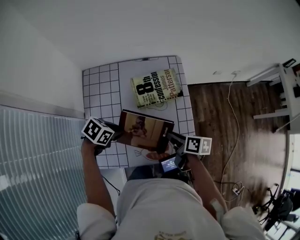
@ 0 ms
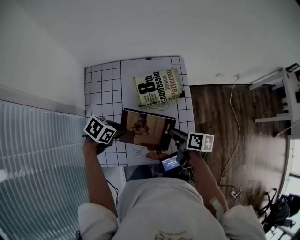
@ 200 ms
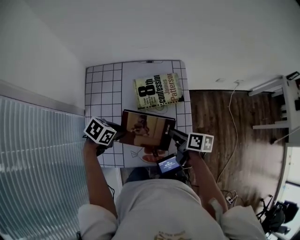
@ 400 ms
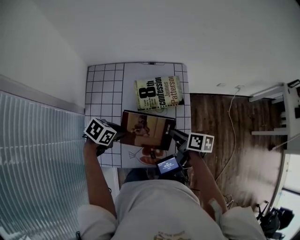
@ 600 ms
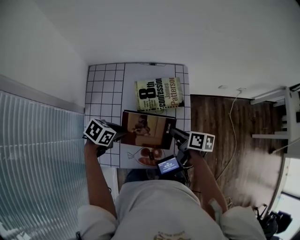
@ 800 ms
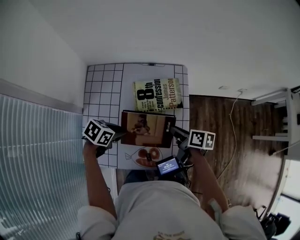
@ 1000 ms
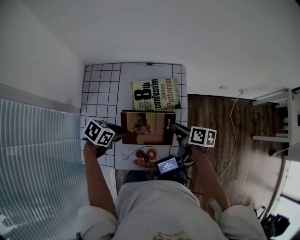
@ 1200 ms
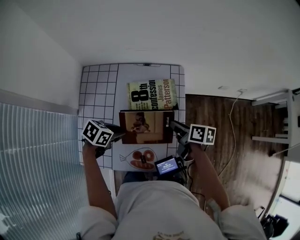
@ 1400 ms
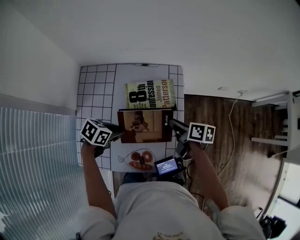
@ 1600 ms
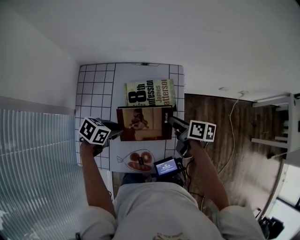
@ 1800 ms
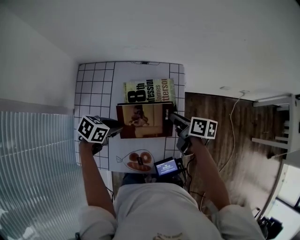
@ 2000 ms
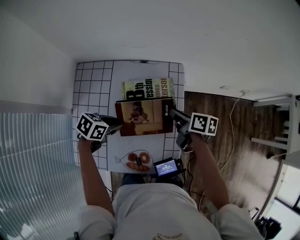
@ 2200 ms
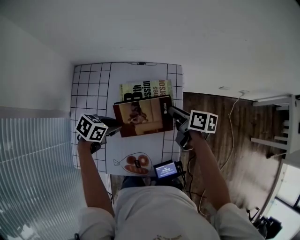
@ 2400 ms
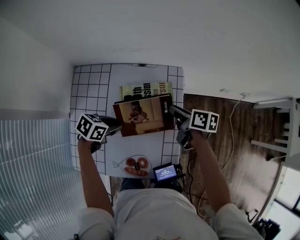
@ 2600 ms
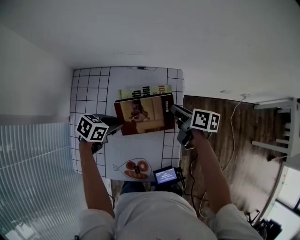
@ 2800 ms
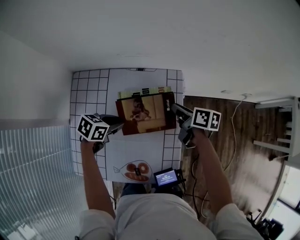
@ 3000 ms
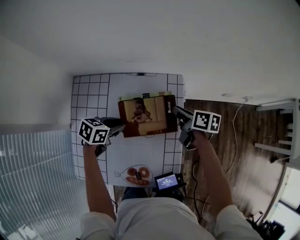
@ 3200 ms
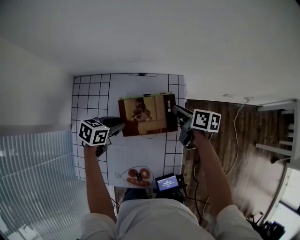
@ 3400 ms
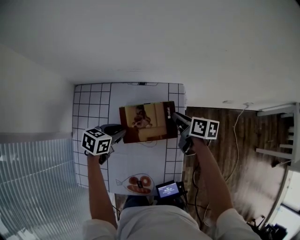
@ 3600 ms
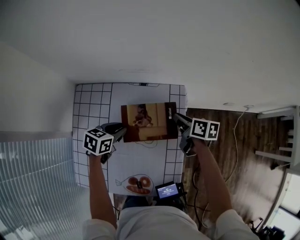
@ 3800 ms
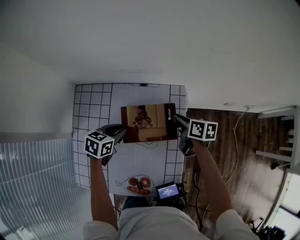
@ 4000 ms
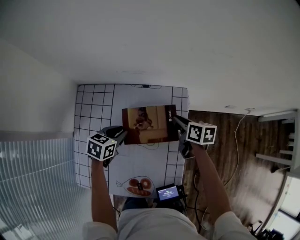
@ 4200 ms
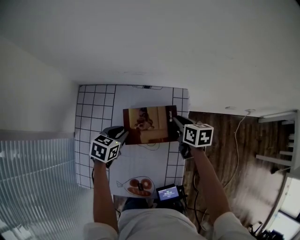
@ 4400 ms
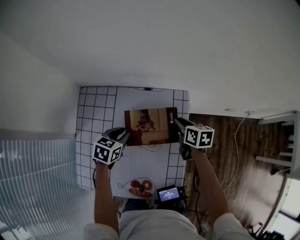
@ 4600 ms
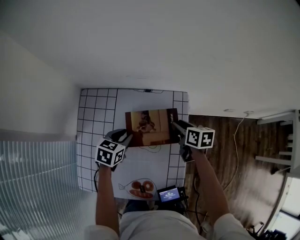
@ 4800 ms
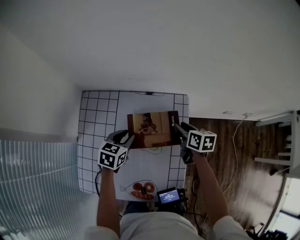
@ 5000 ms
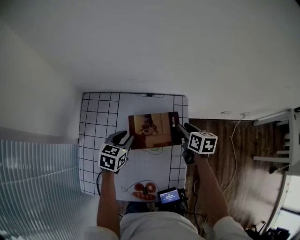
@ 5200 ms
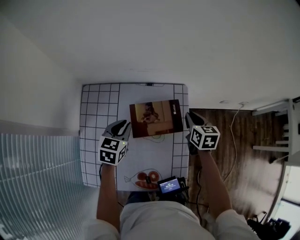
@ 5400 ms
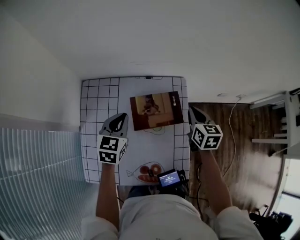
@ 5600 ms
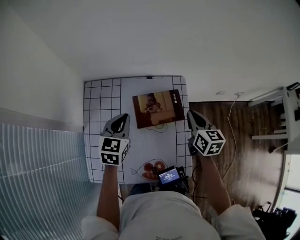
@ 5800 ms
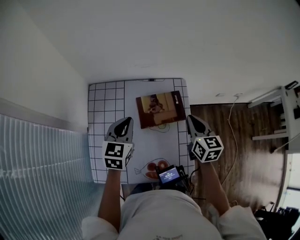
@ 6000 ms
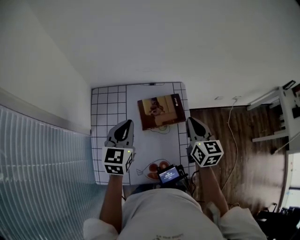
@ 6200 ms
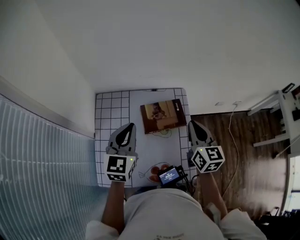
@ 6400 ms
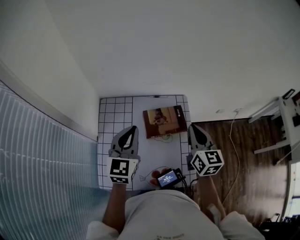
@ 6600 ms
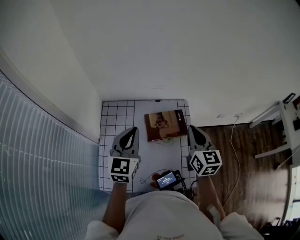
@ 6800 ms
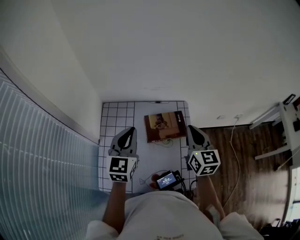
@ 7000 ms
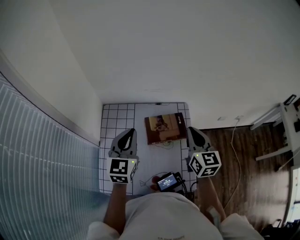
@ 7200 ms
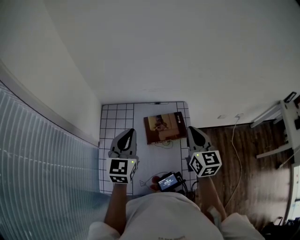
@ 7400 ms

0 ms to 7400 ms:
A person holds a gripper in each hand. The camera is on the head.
0 ms to 1400 ms: The right gripper ends up roughly 15 cm from where it was; the left gripper moves some 5 cm.
1400 ms to 3000 ms: The right gripper moves roughly 15 cm, while the left gripper changes place by about 10 cm.
3000 ms to 4400 ms: The right gripper rotates about 20 degrees.
4400 ms to 6000 ms: The left gripper heads upward, covering approximately 15 cm, turns by approximately 30 degrees, and closes its fingers, while the right gripper goes roughly 20 cm upward and backward, rotates approximately 30 degrees, and opens, then closes again.
6000 ms to 7400 ms: Both grippers travel together upward, roughly 10 cm.

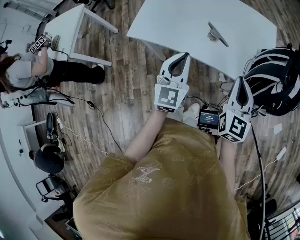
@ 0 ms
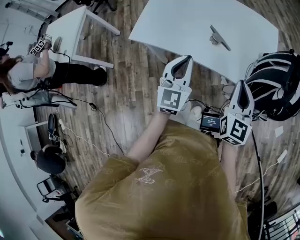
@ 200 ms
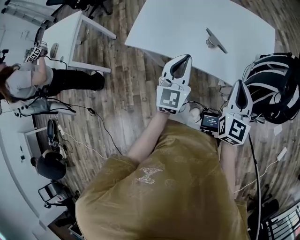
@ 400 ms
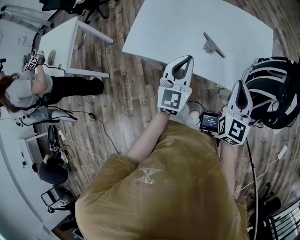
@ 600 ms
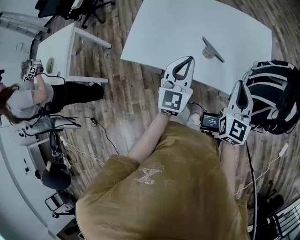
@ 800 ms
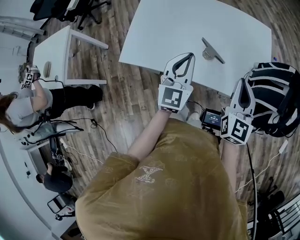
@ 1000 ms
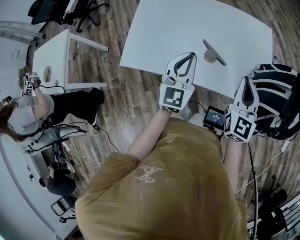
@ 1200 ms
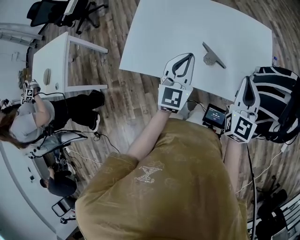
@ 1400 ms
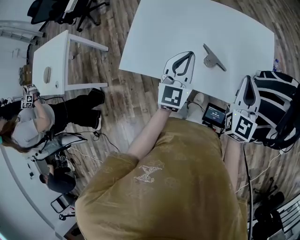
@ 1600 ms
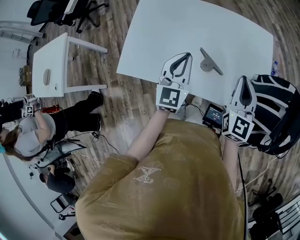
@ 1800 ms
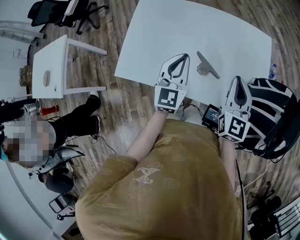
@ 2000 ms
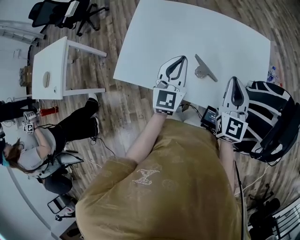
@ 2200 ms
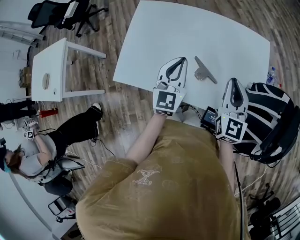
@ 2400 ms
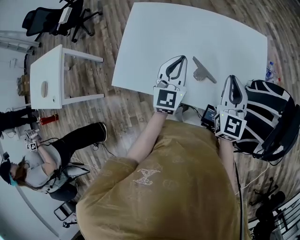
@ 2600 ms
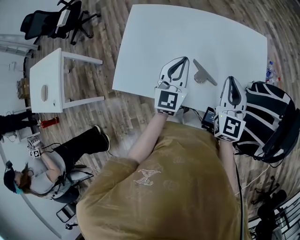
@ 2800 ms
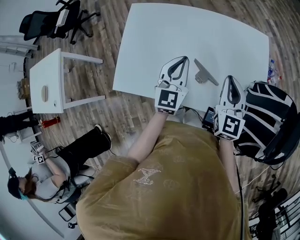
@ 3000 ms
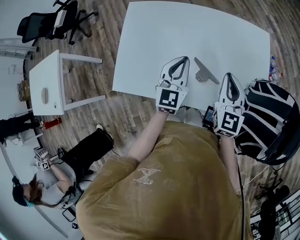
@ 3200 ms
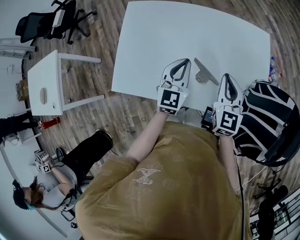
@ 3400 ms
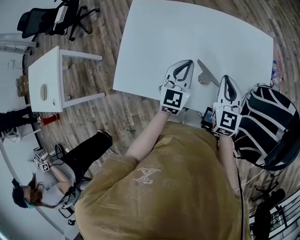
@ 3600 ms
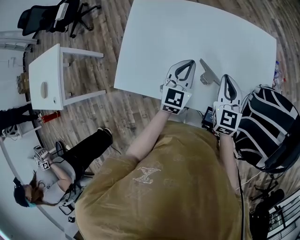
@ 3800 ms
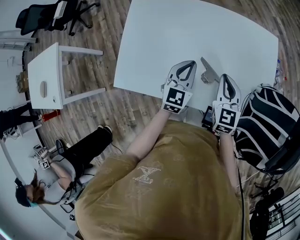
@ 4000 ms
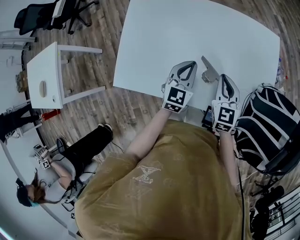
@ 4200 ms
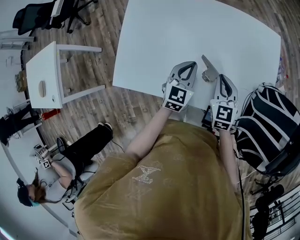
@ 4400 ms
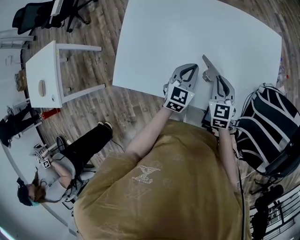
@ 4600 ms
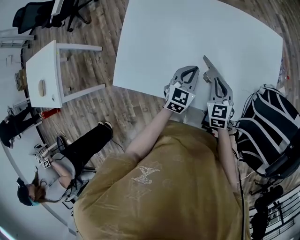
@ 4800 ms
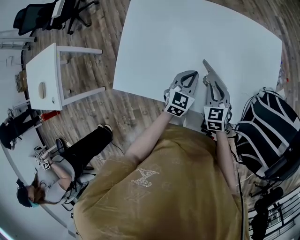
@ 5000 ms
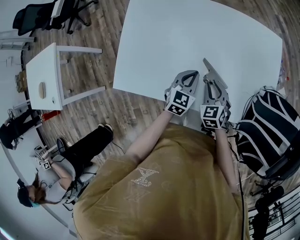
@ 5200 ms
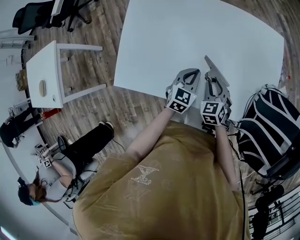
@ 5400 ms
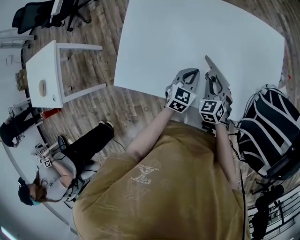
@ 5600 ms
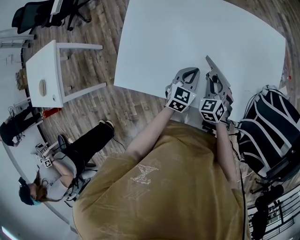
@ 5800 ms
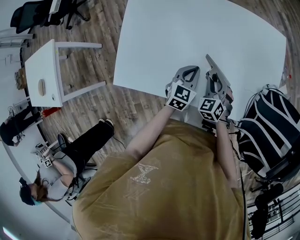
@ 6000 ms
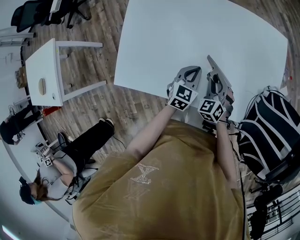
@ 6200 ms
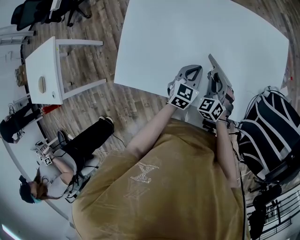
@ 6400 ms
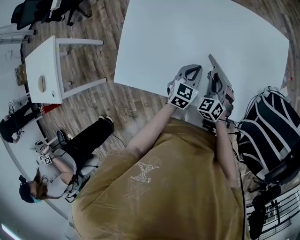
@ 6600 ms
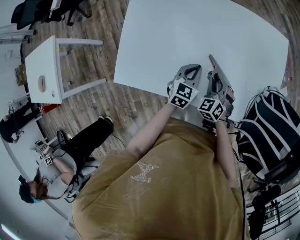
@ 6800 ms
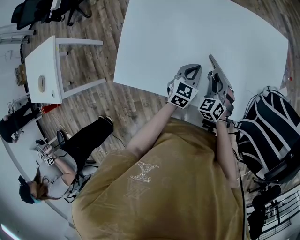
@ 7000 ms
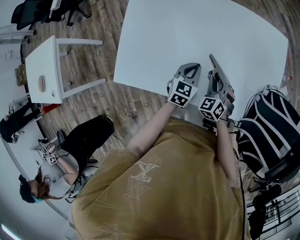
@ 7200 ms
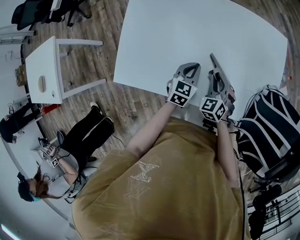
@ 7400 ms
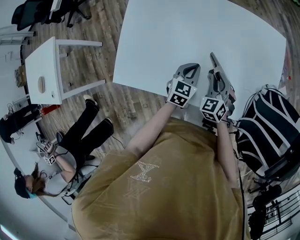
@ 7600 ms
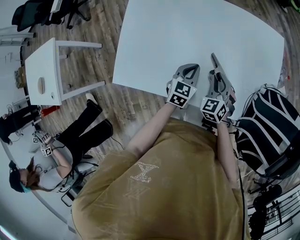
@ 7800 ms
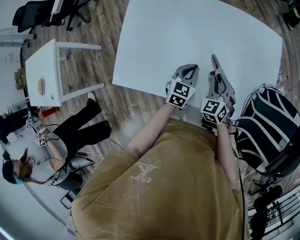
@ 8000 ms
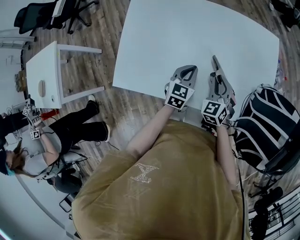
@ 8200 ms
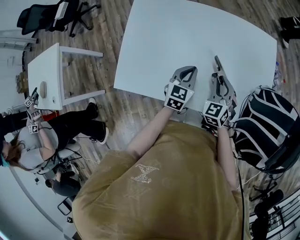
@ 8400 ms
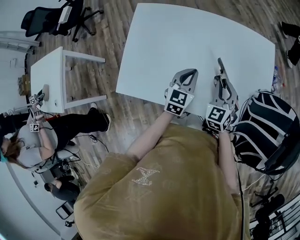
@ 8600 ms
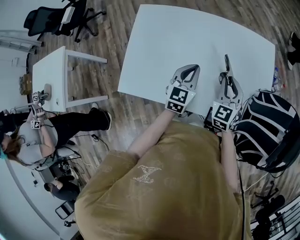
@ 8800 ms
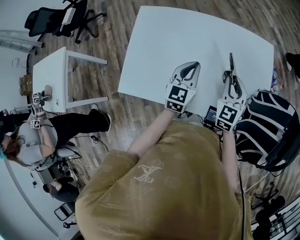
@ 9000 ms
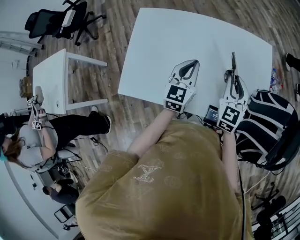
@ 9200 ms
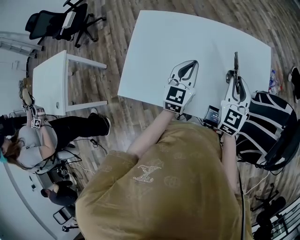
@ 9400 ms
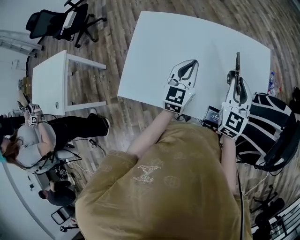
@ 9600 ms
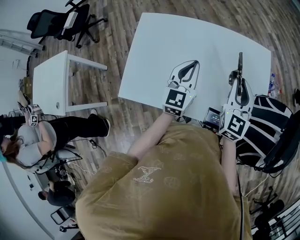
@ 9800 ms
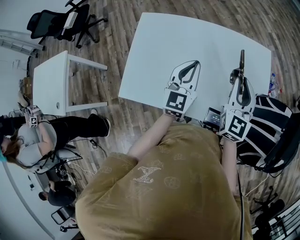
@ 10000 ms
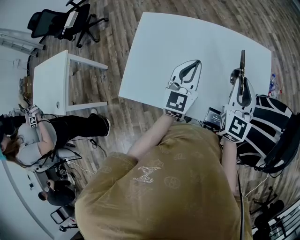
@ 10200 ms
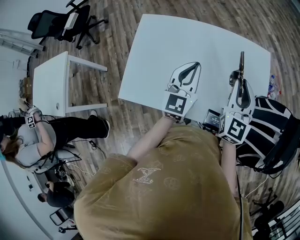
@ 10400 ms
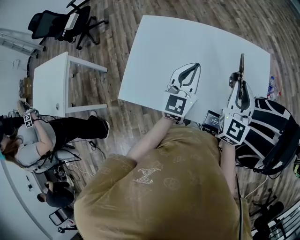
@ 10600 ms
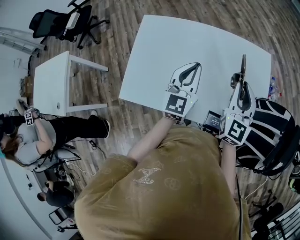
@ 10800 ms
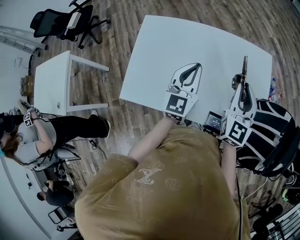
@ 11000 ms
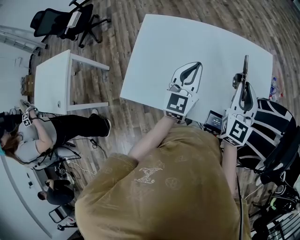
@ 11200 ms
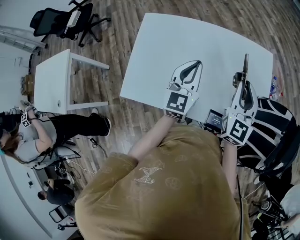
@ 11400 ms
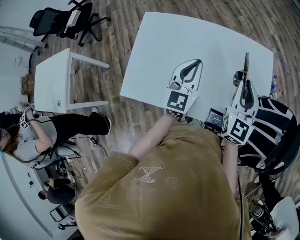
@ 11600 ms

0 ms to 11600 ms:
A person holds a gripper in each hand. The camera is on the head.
0 ms to 1400 ms: Both grippers travel together forward, approximately 15 cm.
1400 ms to 2800 ms: Both grippers move forward, some 10 cm.
2800 ms to 4400 ms: The two grippers go roughly 15 cm downward. The right gripper changes its angle by roughly 20 degrees.
4400 ms to 5800 ms: The left gripper heads downward, covering some 5 cm. The right gripper is displaced downward by approximately 10 cm, rotates about 30 degrees, and opens.
5800 ms to 7200 ms: The grippers move only a little.
7200 ms to 8800 ms: The two grippers go some 15 cm upward. The right gripper rotates about 30 degrees.
8800 ms to 10200 ms: The grippers both shift upward by roughly 10 cm. The right gripper turns by about 20 degrees.
10200 ms to 11600 ms: Both grippers stay about where they are.

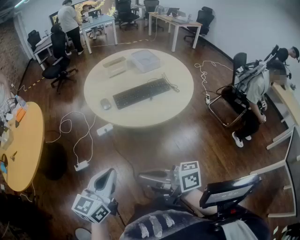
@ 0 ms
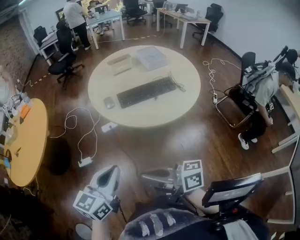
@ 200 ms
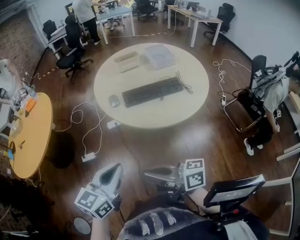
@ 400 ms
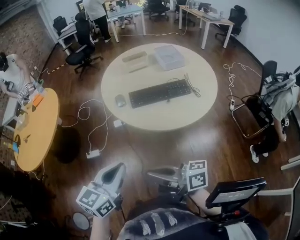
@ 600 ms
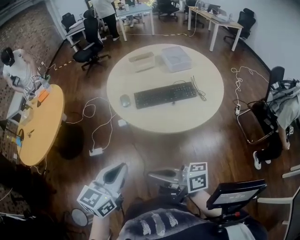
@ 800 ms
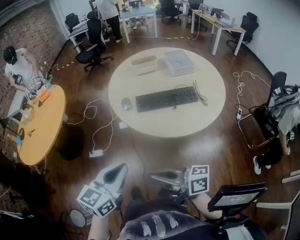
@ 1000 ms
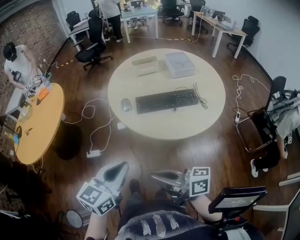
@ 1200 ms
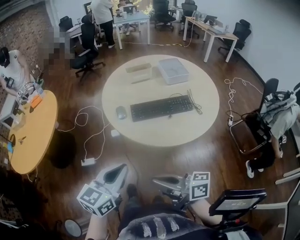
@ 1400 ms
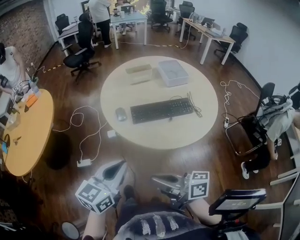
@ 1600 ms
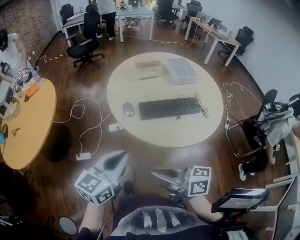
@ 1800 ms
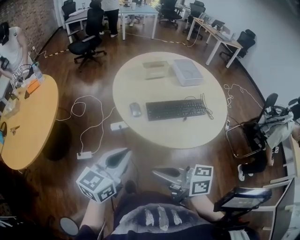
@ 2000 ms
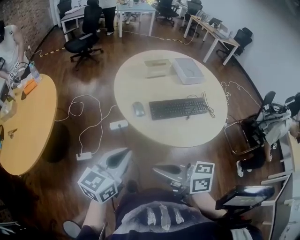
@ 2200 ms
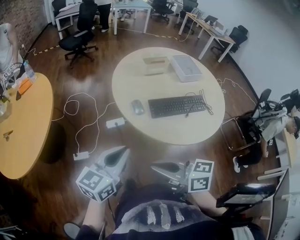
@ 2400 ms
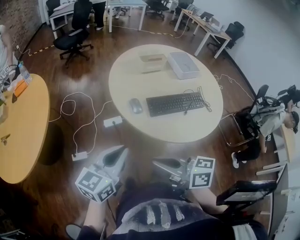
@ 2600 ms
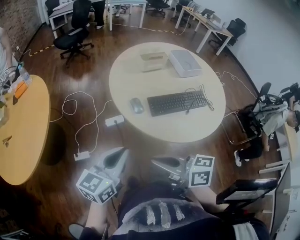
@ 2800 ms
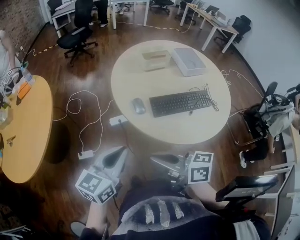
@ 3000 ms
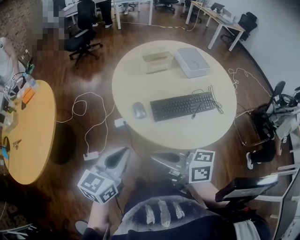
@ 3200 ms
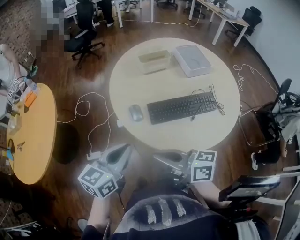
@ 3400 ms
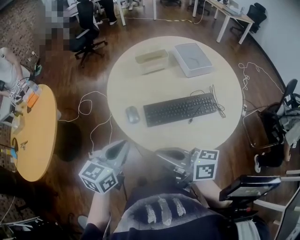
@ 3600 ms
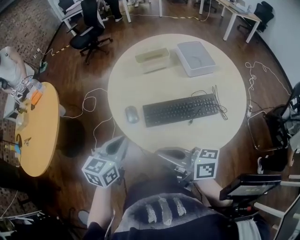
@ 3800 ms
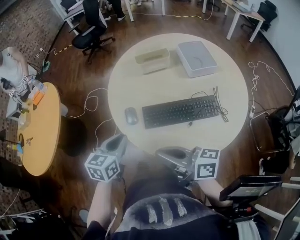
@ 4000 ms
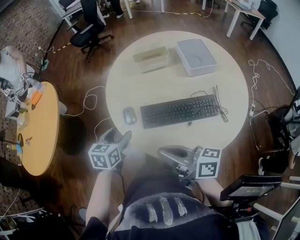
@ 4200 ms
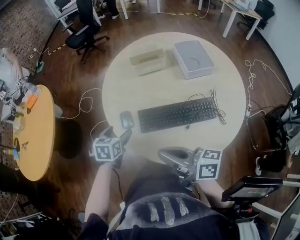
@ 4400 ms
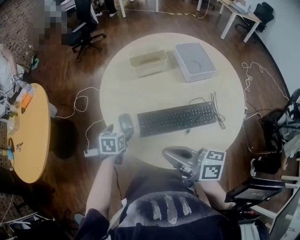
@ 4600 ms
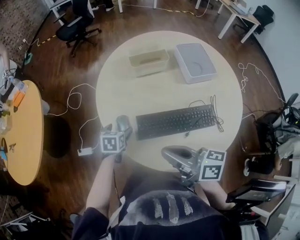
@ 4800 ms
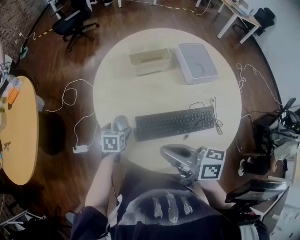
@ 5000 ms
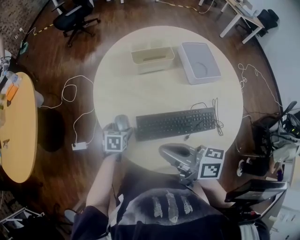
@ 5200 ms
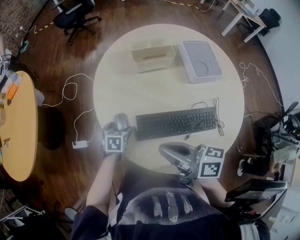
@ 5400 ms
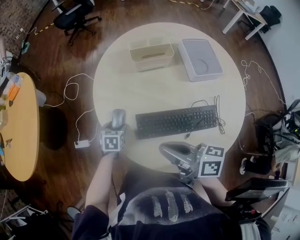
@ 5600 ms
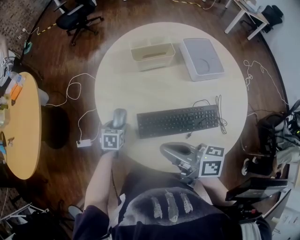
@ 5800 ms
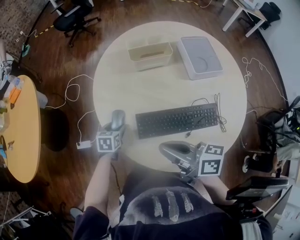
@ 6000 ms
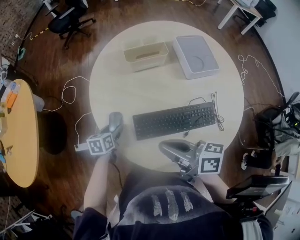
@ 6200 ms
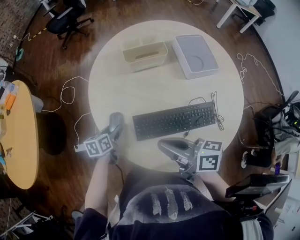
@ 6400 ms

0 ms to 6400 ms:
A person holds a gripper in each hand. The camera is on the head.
0 ms to 1600 ms: Both grippers move forward and to the right, roughly 15 cm.
1600 ms to 3200 ms: The two grippers go roughly 20 cm forward and to the left.
3200 ms to 4800 ms: The right gripper heads to the right and forward, covering about 20 cm. Meanwhile the left gripper shifts roughly 35 cm downward, forward and to the right, tilts its fingers some 40 degrees downward, and opens its fingers.
4800 ms to 6400 ms: The left gripper changes its angle by about 20 degrees, and closes its fingers, while the right gripper ends up about 5 cm from where it was.
